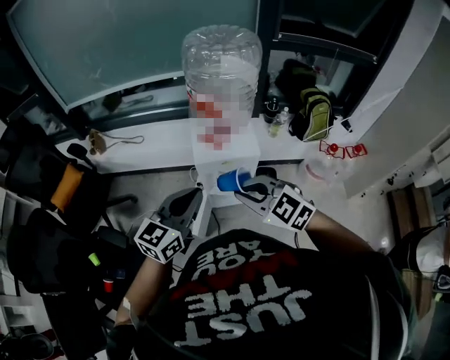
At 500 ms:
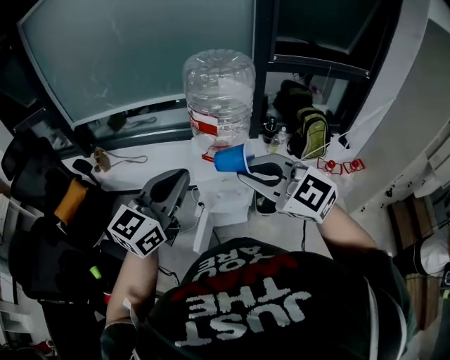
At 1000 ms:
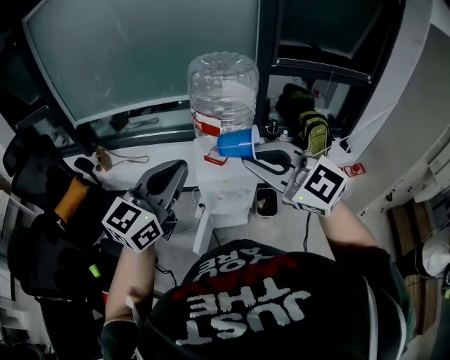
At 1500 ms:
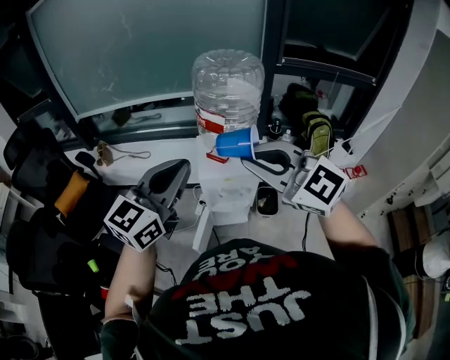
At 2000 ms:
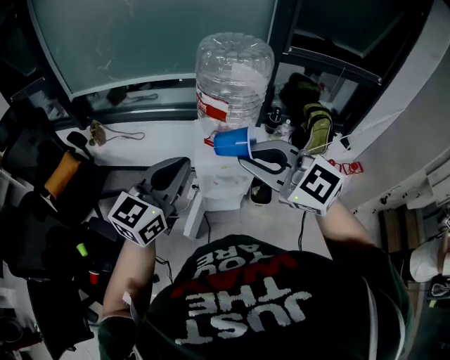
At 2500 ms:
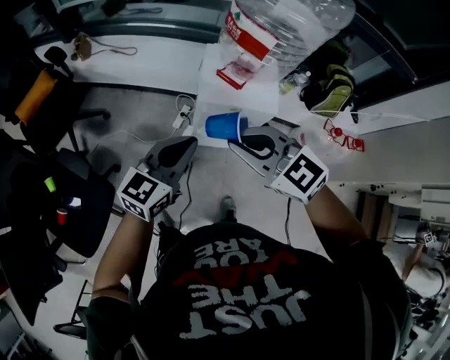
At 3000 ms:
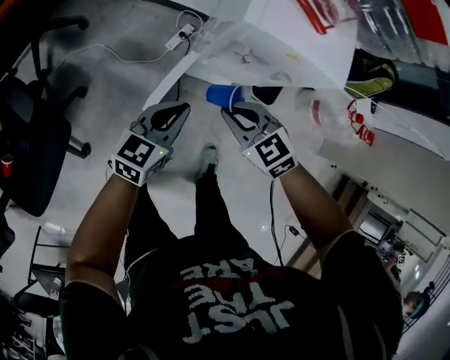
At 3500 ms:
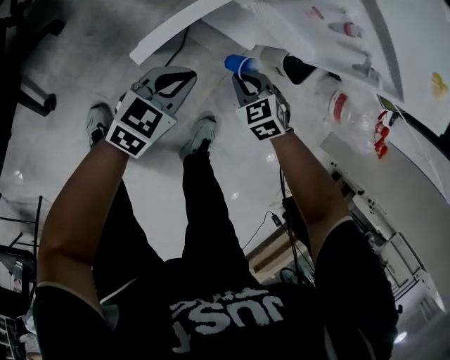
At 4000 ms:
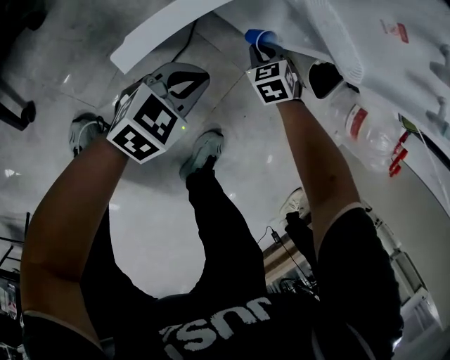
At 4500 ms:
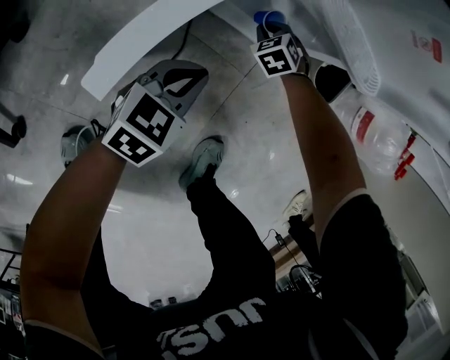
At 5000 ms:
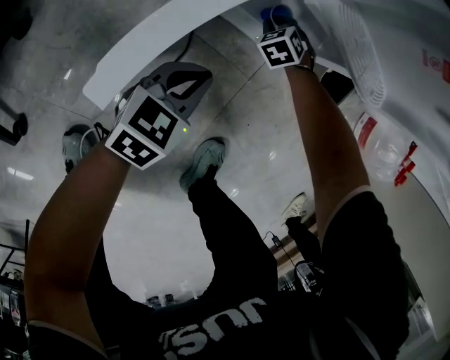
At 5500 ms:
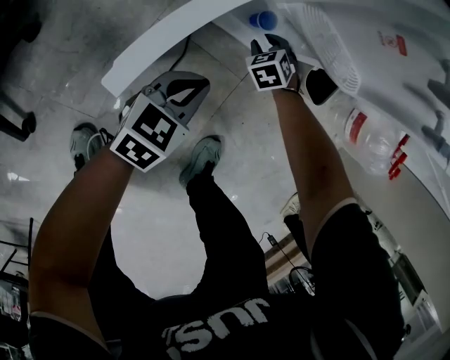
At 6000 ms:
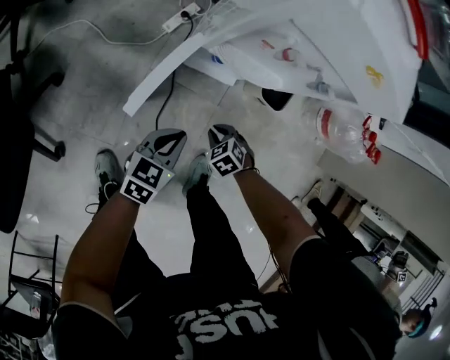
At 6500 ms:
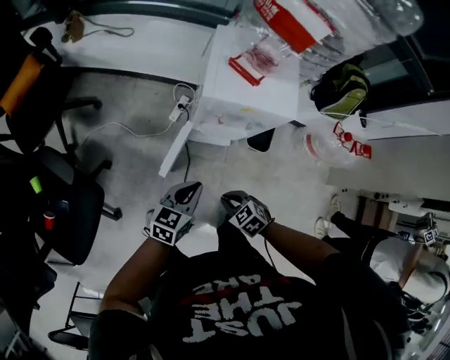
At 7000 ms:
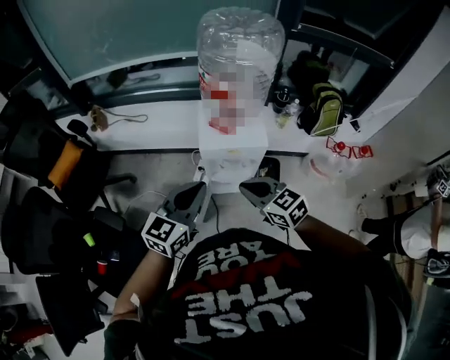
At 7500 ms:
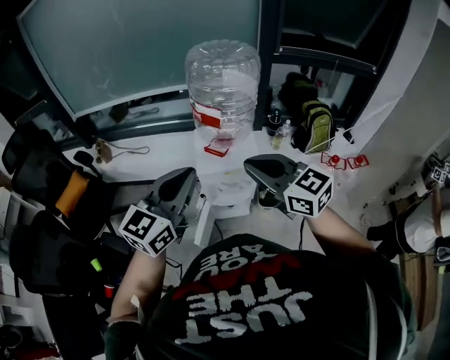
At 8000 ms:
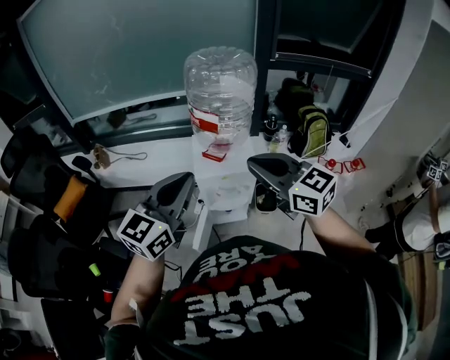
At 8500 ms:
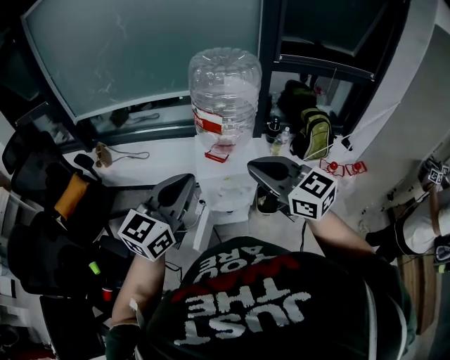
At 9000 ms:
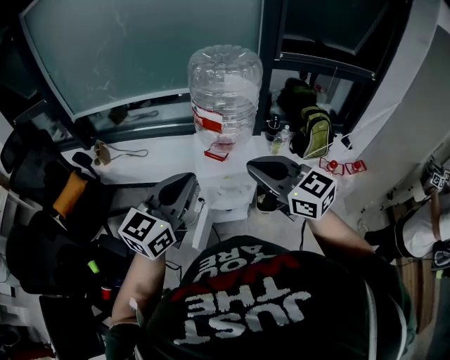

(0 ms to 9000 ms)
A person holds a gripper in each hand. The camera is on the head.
0 ms - 2000 ms: The left gripper shifts about 10 cm upward; the right gripper heads upward, covering some 15 cm.
2000 ms - 4500 ms: The grippers both shift downward by roughly 1 m. The right gripper angles its fingers downward, by some 50 degrees; the left gripper points its fingers approximately 30 degrees further downward.
4500 ms - 7000 ms: The two grippers go approximately 80 cm upward. The right gripper angles its fingers upward, by approximately 40 degrees, and opens and closes again; the left gripper rotates approximately 30 degrees.
7000 ms - 9000 ms: The two grippers go some 20 cm upward. The right gripper rotates roughly 20 degrees.

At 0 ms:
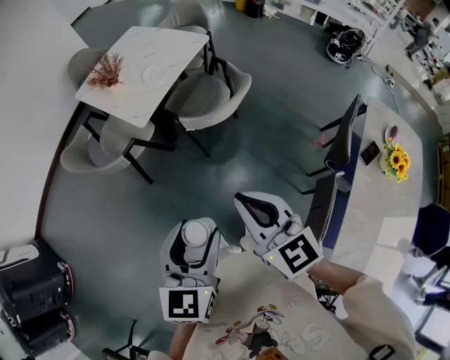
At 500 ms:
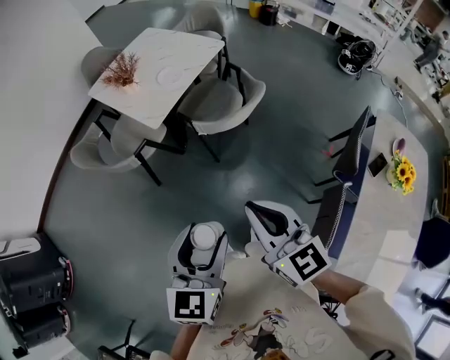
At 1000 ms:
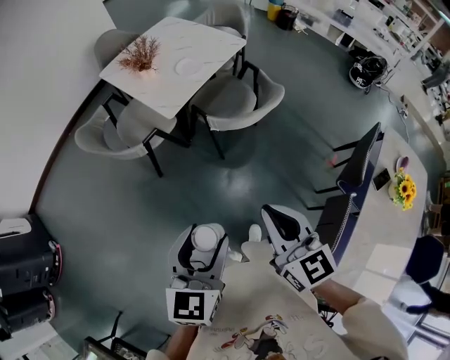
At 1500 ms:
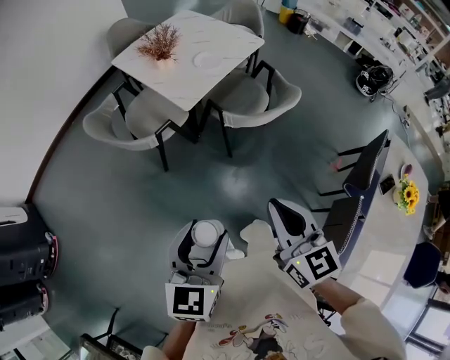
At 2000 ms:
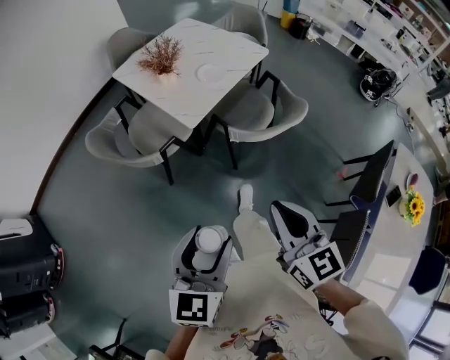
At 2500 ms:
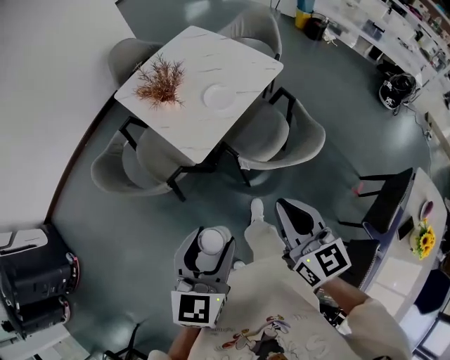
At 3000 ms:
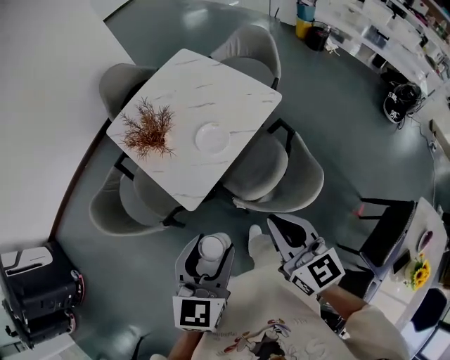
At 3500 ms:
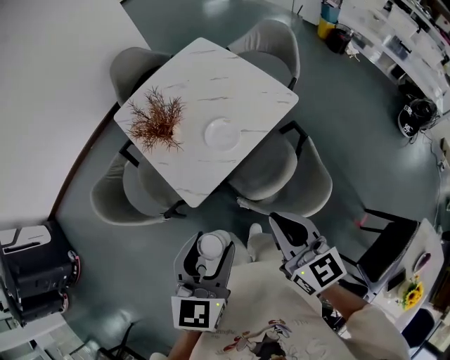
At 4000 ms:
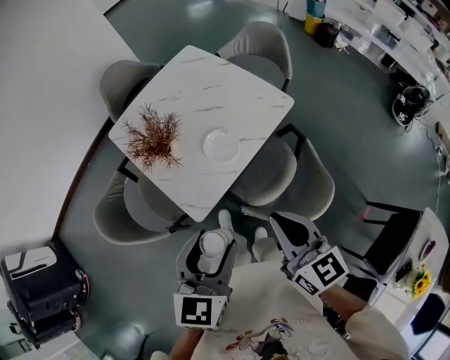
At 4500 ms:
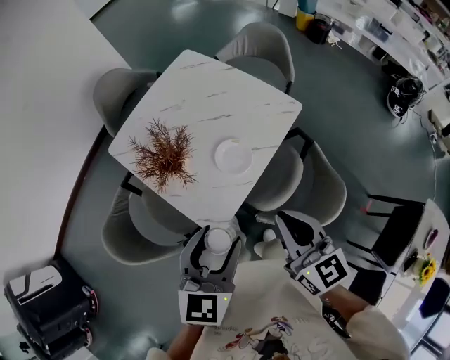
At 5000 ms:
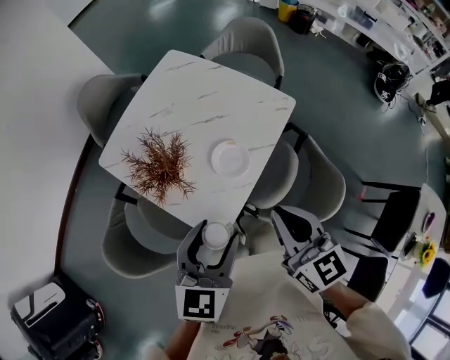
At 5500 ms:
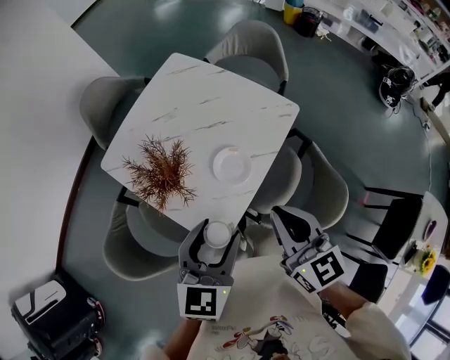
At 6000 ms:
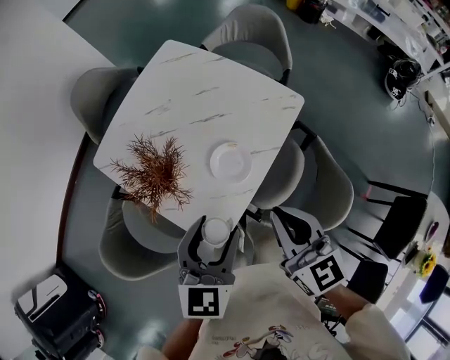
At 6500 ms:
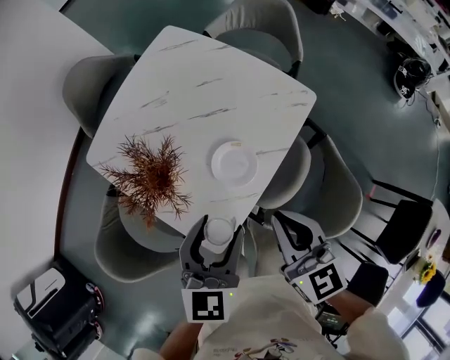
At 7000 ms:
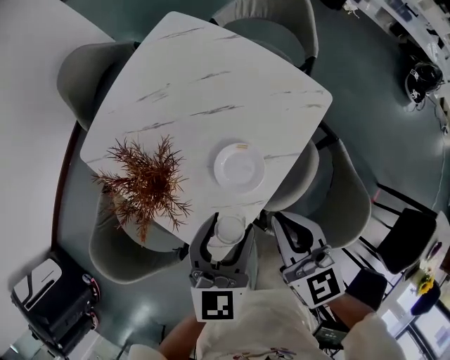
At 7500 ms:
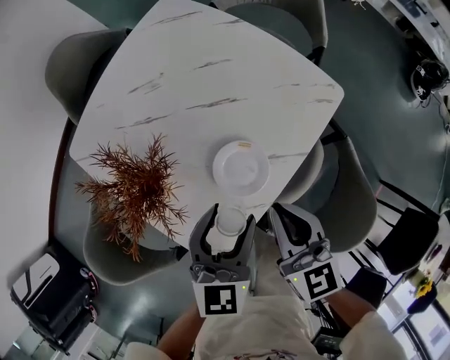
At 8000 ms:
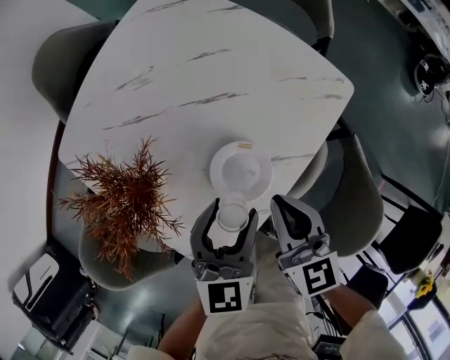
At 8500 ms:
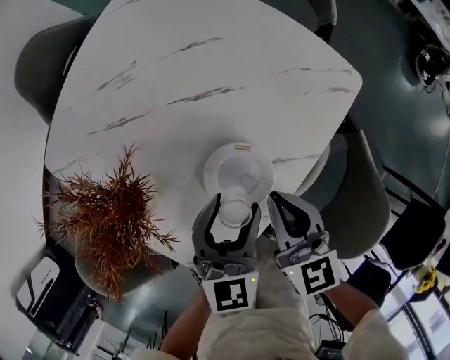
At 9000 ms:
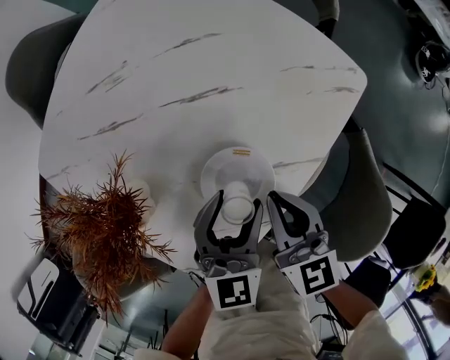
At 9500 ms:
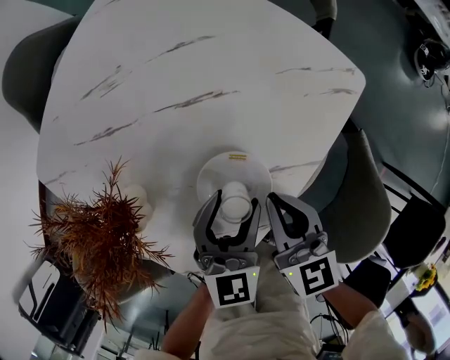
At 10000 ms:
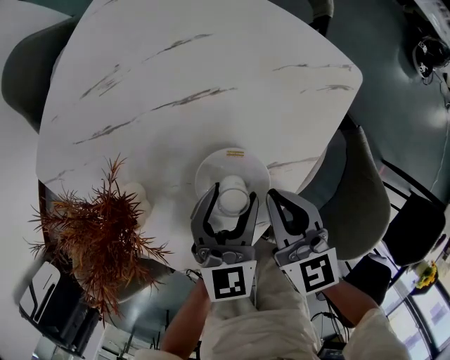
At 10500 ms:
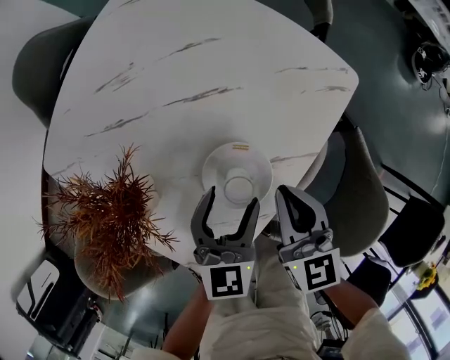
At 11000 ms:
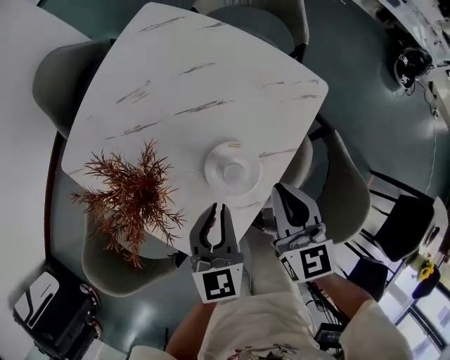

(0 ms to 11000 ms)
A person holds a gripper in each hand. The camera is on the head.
0 ms - 2000 ms: The grippers both shift to the left and forward by roughly 15 cm.
2000 ms - 3500 ms: Both grippers move forward, about 35 cm.
3500 ms - 5500 ms: The left gripper travels forward by some 20 cm. The right gripper travels forward and to the left by about 20 cm.
5500 ms - 7500 ms: The two grippers go approximately 20 cm downward and forward.
7500 ms - 9000 ms: The grippers both shift downward by some 10 cm.
9000 ms - 11000 ms: The grippers both shift upward by roughly 10 cm. The left gripper closes.

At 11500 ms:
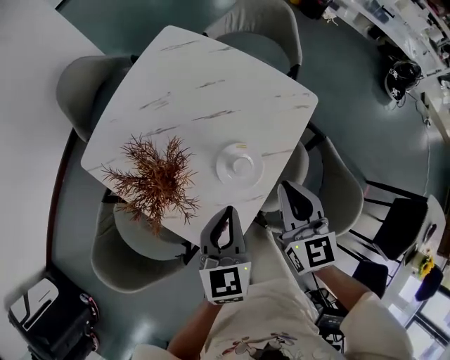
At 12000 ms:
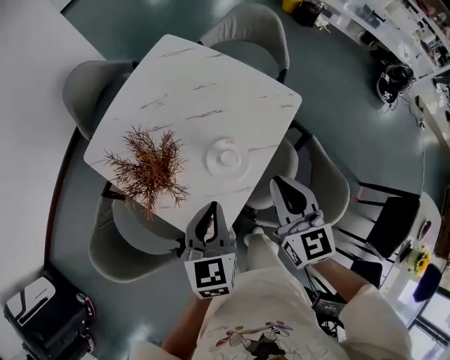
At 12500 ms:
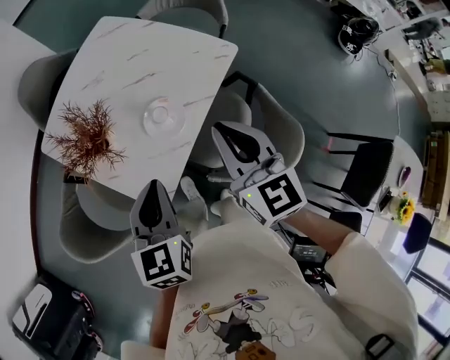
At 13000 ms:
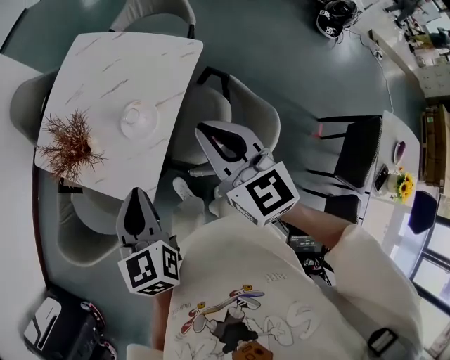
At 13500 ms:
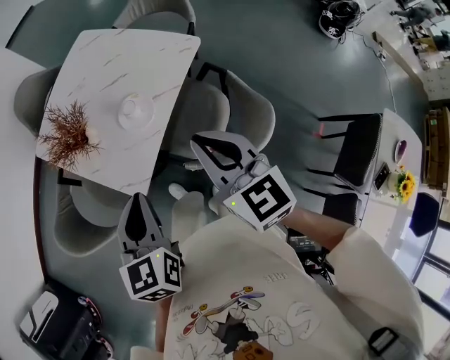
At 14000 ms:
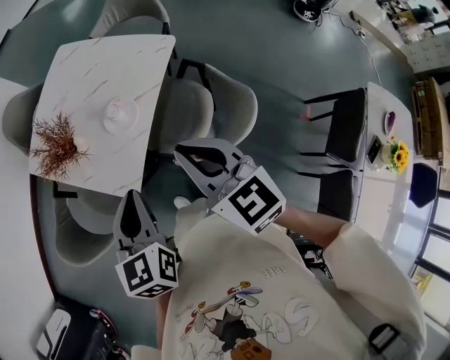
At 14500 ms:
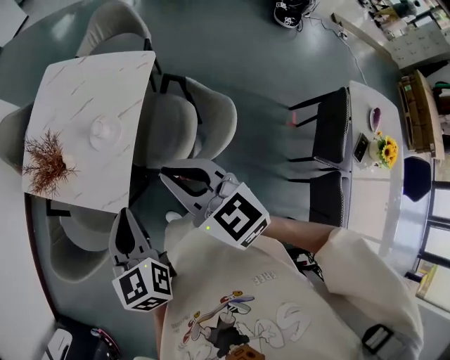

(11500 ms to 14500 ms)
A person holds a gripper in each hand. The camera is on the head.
11500 ms - 13000 ms: The right gripper is displaced backward, upward and to the right by roughly 20 cm, while the left gripper travels backward and upward by about 20 cm.
13000 ms - 14500 ms: Both grippers move backward, about 10 cm.

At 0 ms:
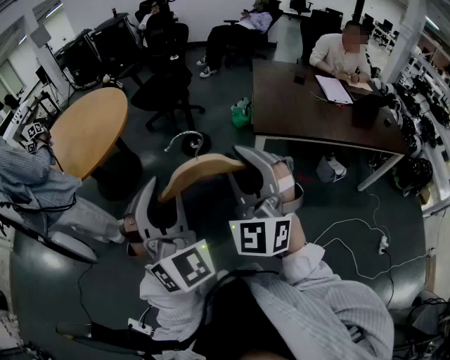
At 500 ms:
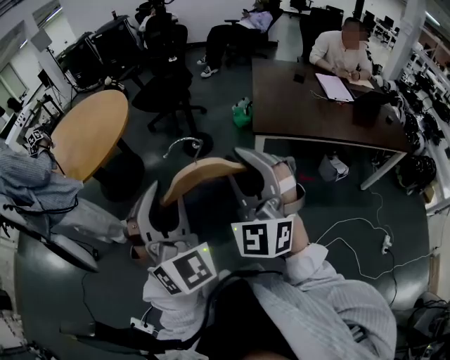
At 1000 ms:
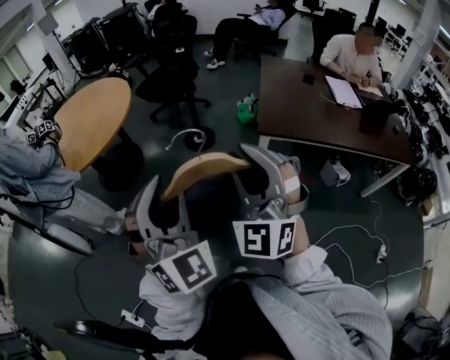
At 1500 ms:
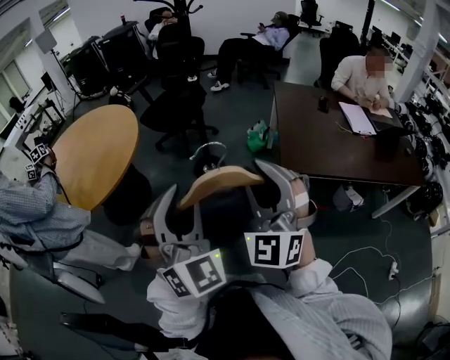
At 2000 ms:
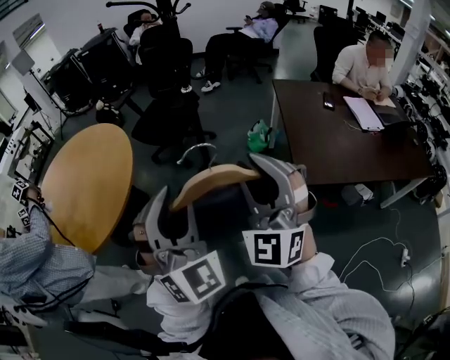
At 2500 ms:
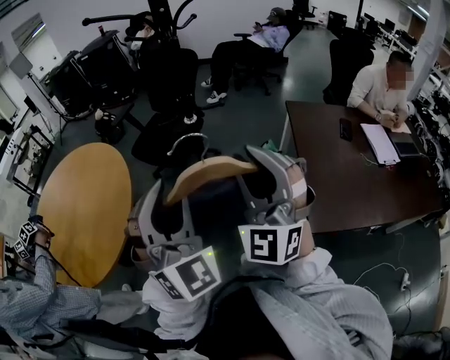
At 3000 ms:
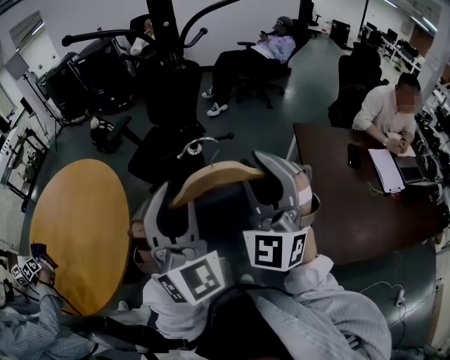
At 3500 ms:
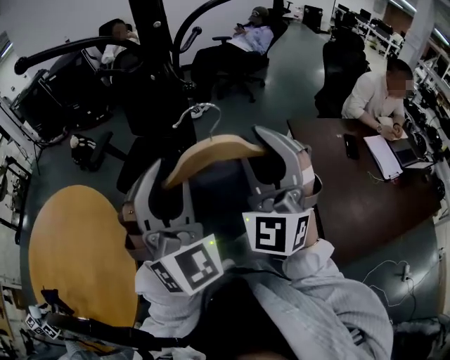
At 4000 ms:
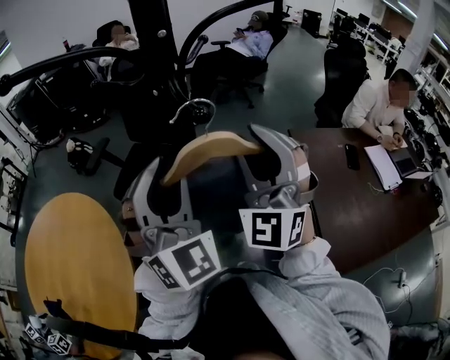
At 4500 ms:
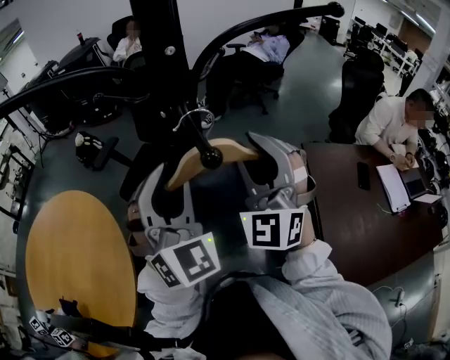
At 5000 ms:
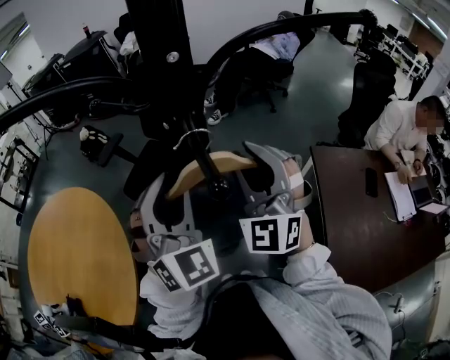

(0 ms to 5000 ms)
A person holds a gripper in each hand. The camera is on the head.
0 ms - 2500 ms: Both grippers are carried forward, roughly 60 cm.
2500 ms - 5000 ms: The two grippers travel together, forward, some 40 cm.
